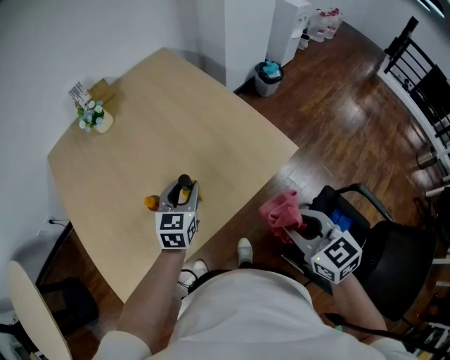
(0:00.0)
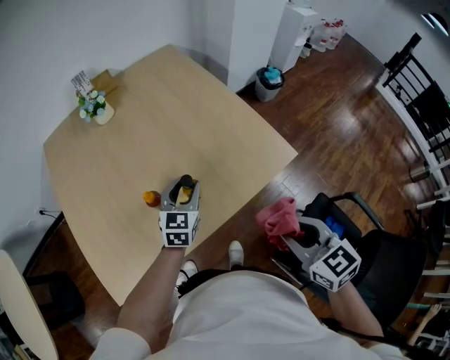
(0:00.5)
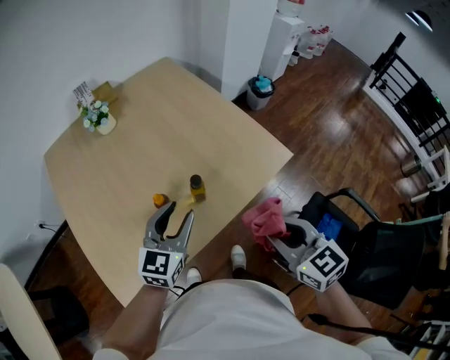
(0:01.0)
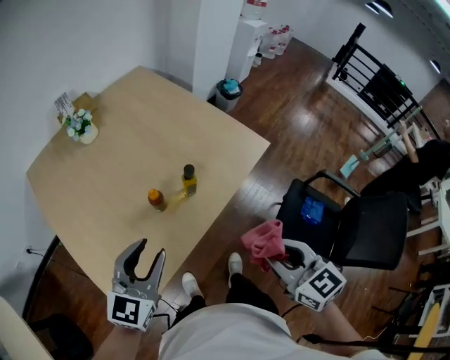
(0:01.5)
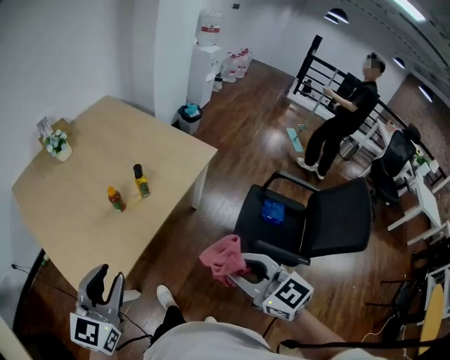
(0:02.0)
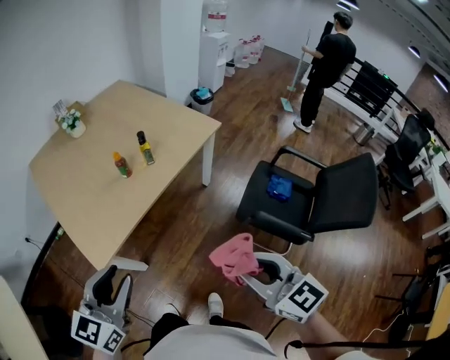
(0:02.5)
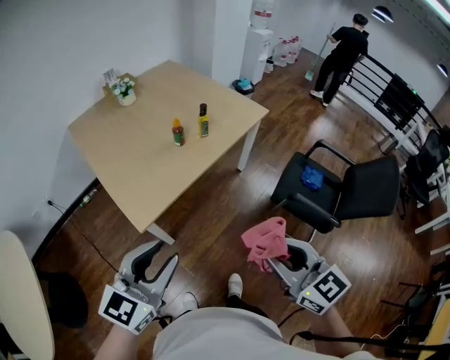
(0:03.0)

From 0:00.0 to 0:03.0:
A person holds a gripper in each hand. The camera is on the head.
From 0:00.0 to 0:01.5: The right gripper heads to the left and backward, covering roughly 20 cm; the left gripper travels backward, to the left and upward by about 30 cm, and changes its angle by approximately 20 degrees.
From 0:01.5 to 0:03.0: The two grippers go roughly 40 cm backward.

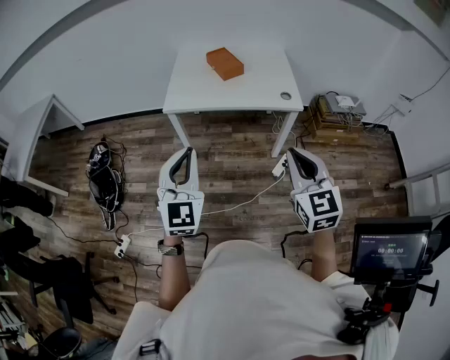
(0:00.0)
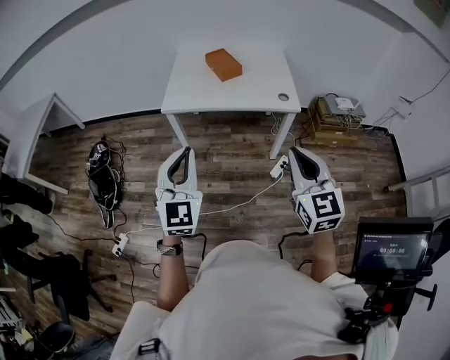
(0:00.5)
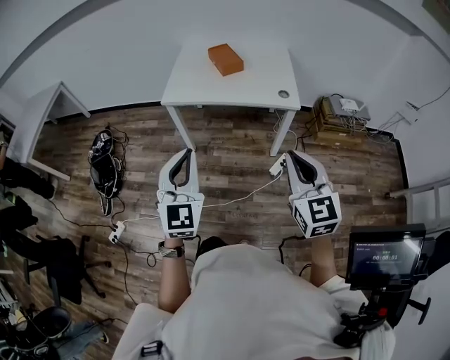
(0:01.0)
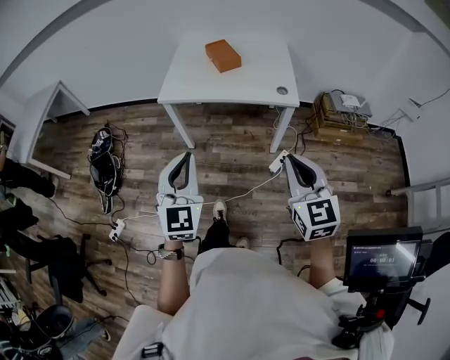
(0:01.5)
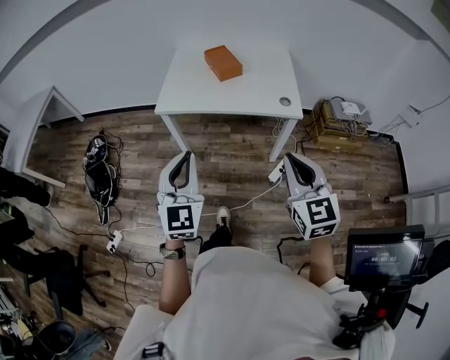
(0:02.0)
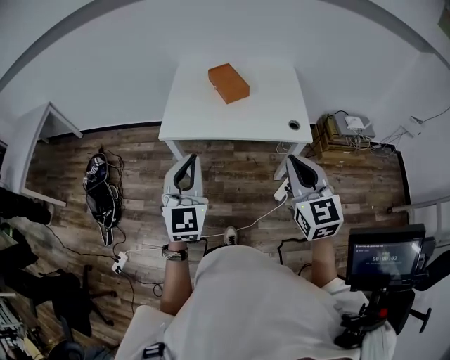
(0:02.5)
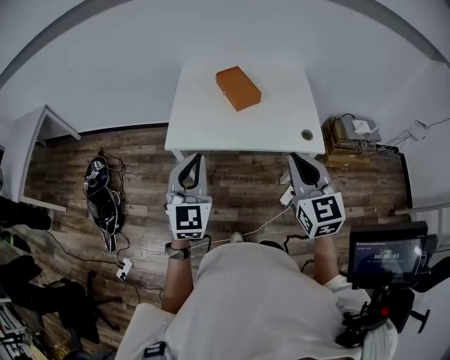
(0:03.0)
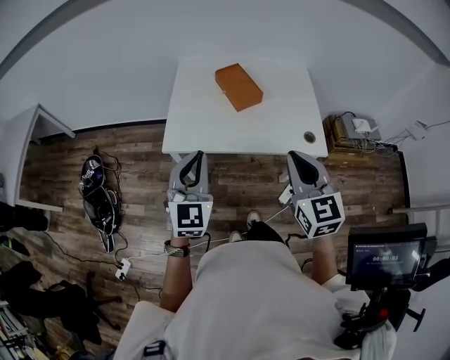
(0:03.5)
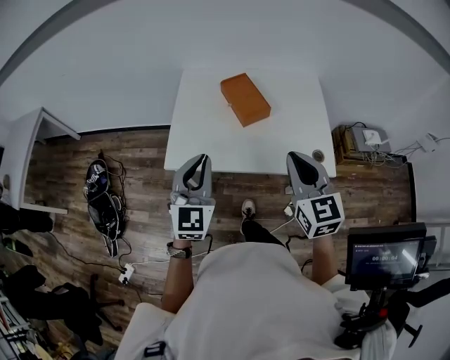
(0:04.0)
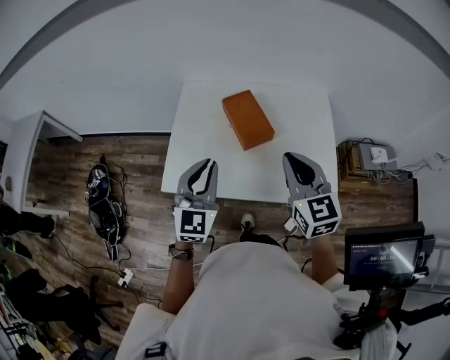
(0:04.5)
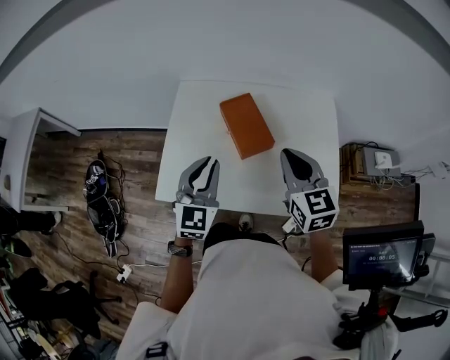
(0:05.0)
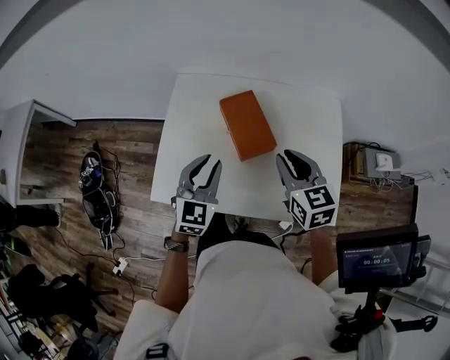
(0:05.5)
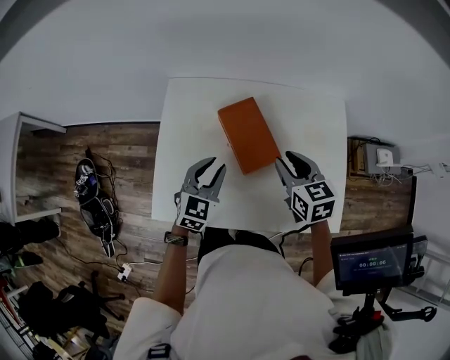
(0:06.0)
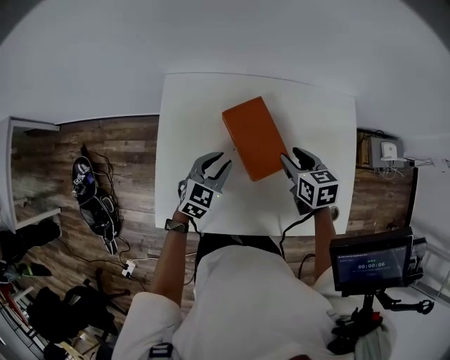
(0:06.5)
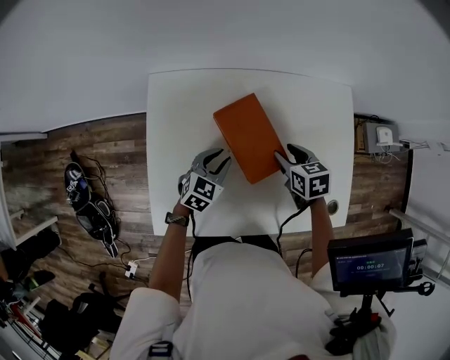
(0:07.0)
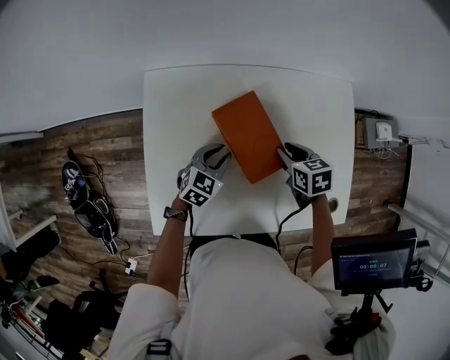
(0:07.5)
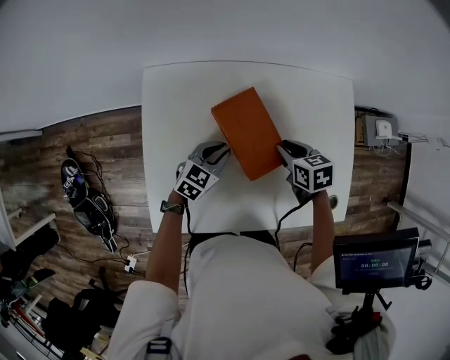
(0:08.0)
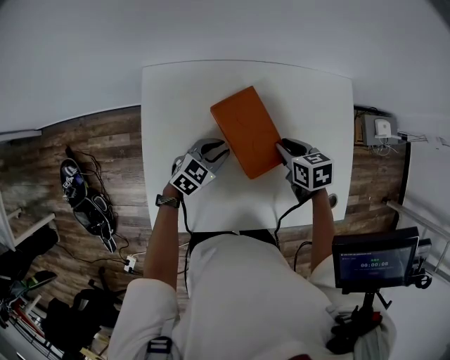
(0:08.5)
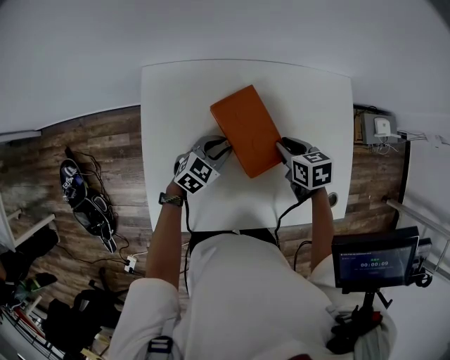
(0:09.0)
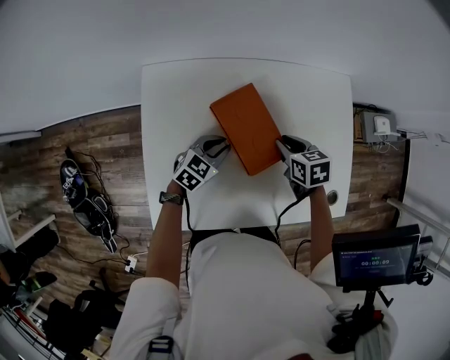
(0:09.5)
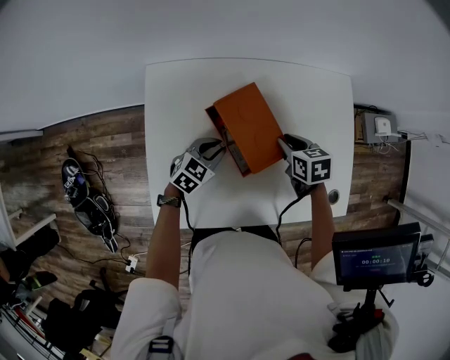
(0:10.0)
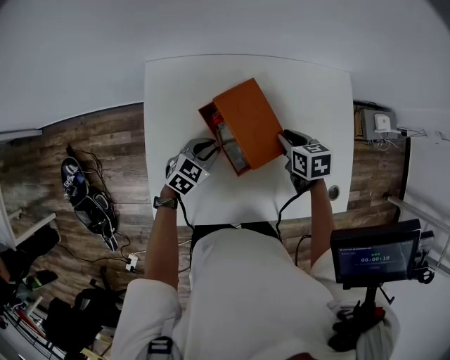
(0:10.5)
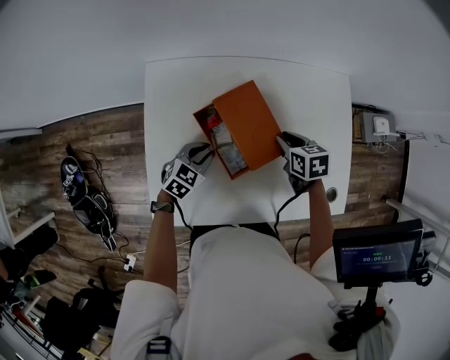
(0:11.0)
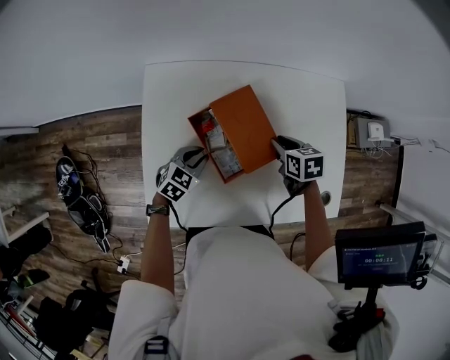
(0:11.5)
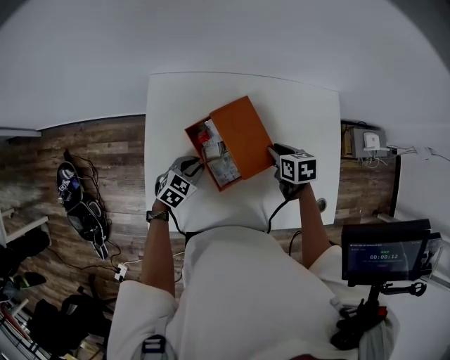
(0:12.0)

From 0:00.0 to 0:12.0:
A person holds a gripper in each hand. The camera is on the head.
From 0:00.0 to 0:02.0: The two grippers go roughly 5 cm to the right.
From 0:02.0 to 0:04.0: The two grippers go roughly 40 cm forward.
From 0:04.0 to 0:06.0: Both grippers travel together forward and downward, some 35 cm. The left gripper swivels roughly 30 degrees, and opens up, while the right gripper rotates about 30 degrees, and opens.
From 0:06.0 to 0:08.0: The right gripper shifts roughly 15 cm downward, and changes its angle by about 20 degrees, while the left gripper goes approximately 15 cm downward and forward, and rotates approximately 30 degrees.
From 0:08.0 to 0:10.0: The grippers make only small movements.
From 0:10.0 to 0:12.0: The left gripper shifts roughly 5 cm to the left.

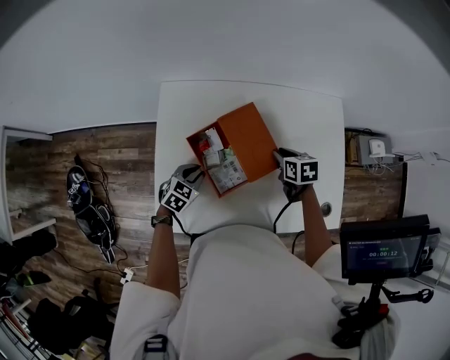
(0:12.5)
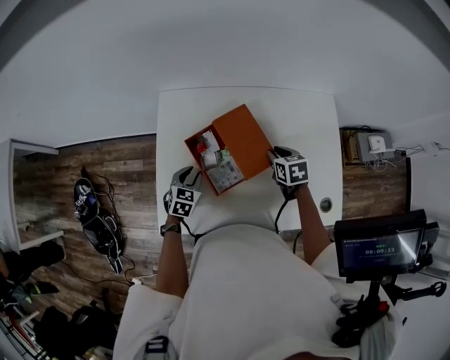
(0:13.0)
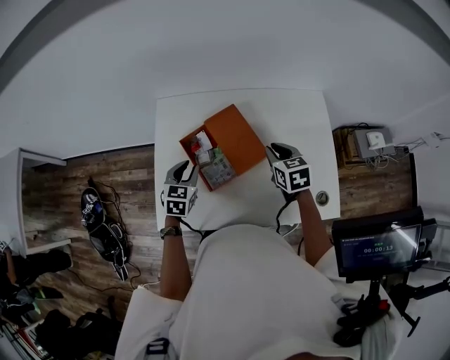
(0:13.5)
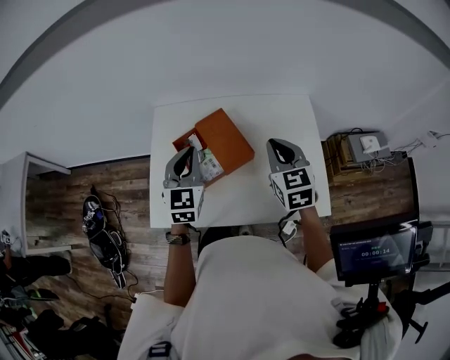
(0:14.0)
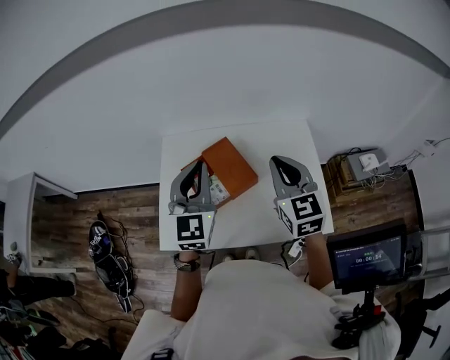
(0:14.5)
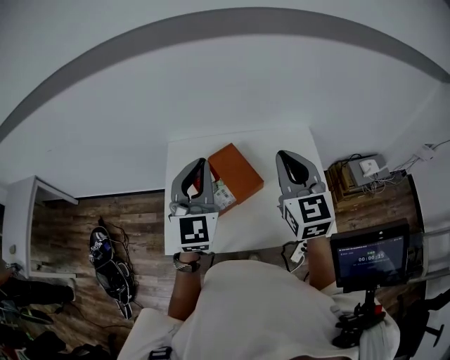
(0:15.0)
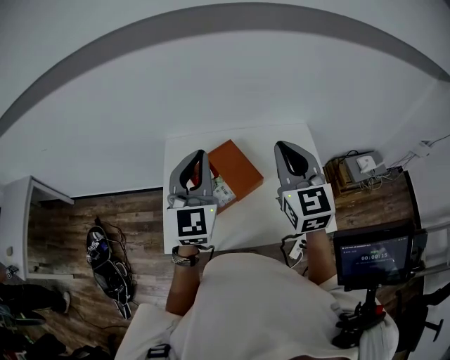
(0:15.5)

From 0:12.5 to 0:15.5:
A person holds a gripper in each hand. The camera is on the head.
From 0:12.5 to 0:14.0: Both grippers move upward, roughly 25 cm. The left gripper tips its fingers upward by some 30 degrees, while the right gripper points its fingers roughly 30 degrees further upward, and closes its fingers.
From 0:14.0 to 0:15.5: Both grippers travel together upward, about 15 cm.

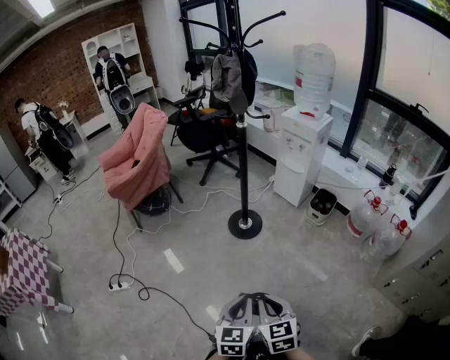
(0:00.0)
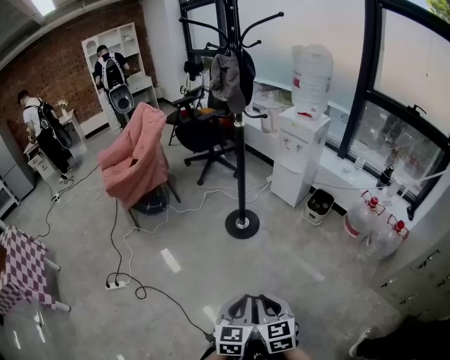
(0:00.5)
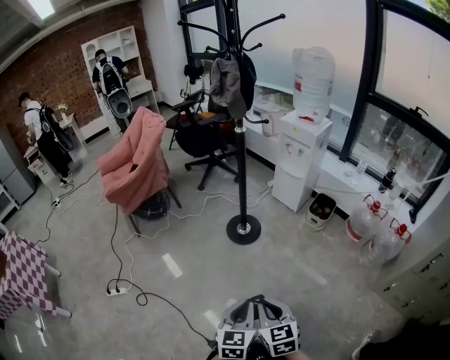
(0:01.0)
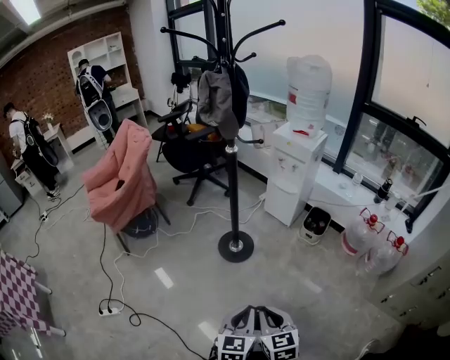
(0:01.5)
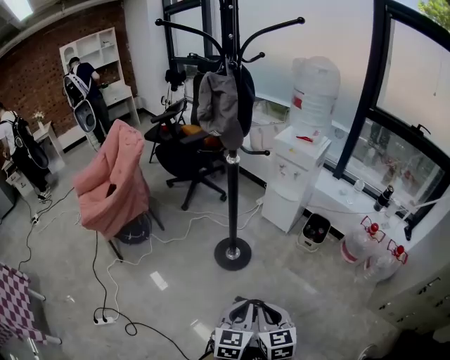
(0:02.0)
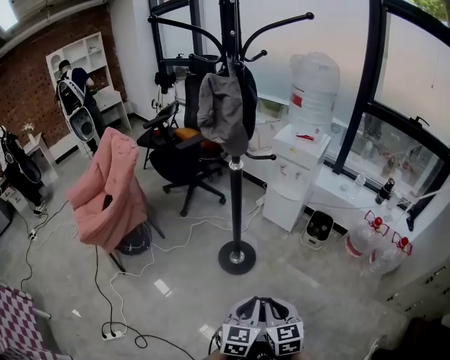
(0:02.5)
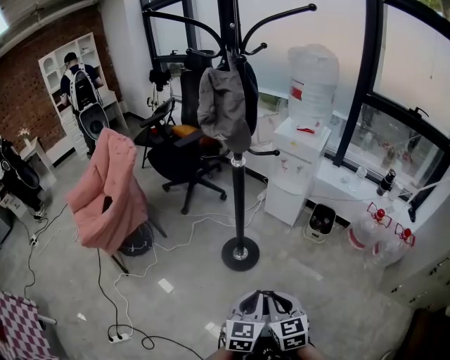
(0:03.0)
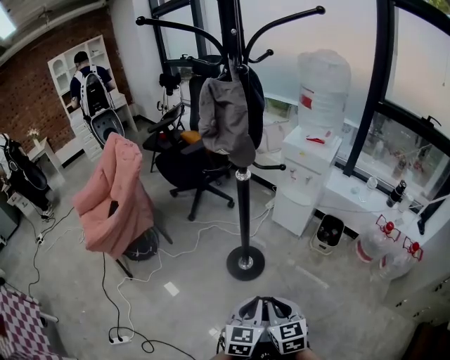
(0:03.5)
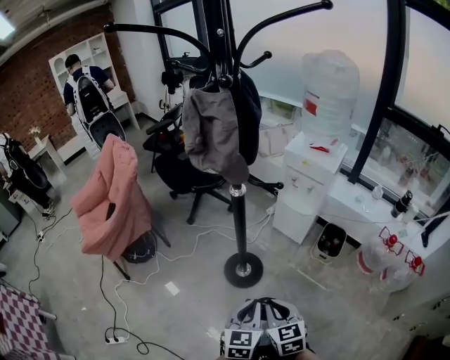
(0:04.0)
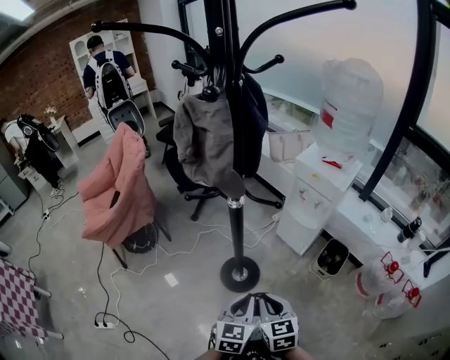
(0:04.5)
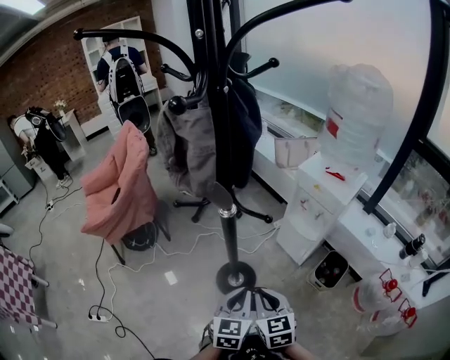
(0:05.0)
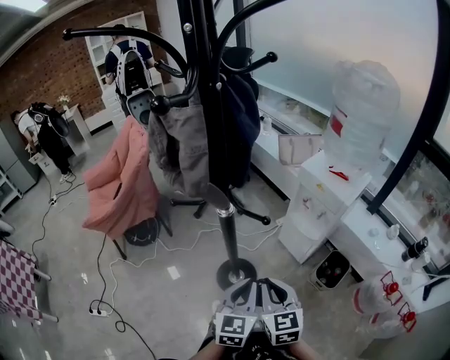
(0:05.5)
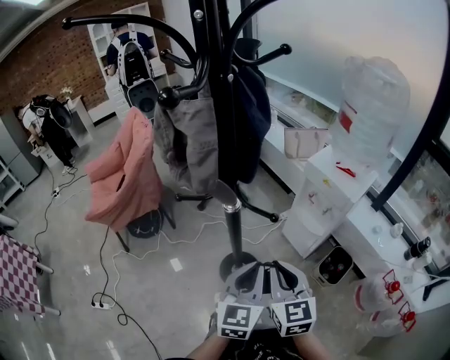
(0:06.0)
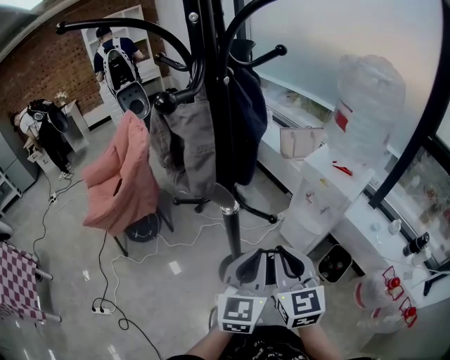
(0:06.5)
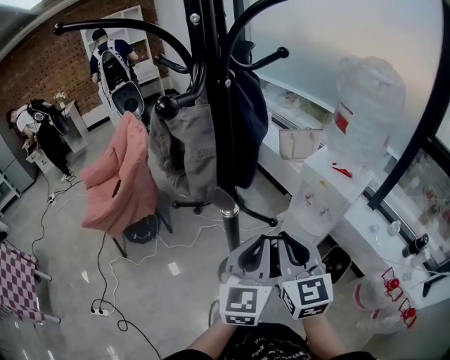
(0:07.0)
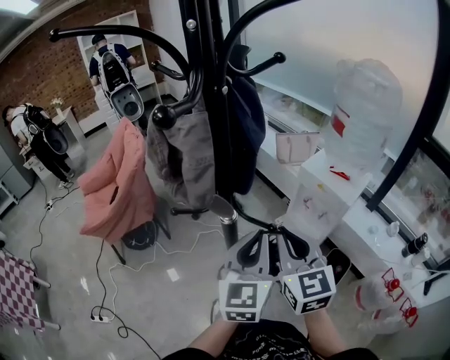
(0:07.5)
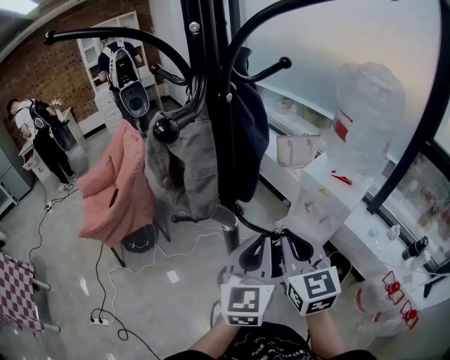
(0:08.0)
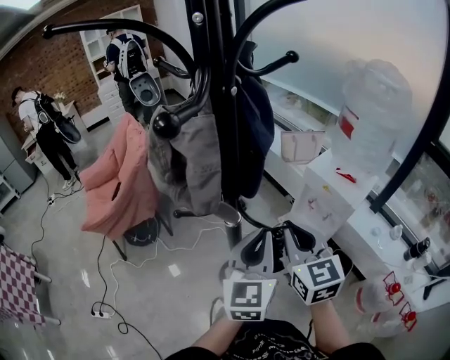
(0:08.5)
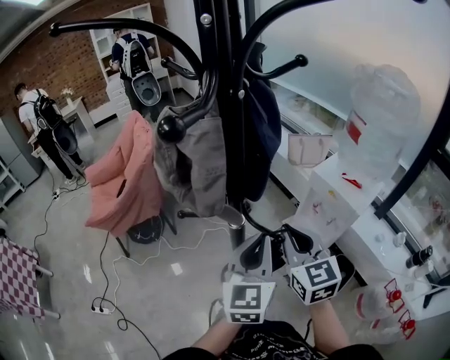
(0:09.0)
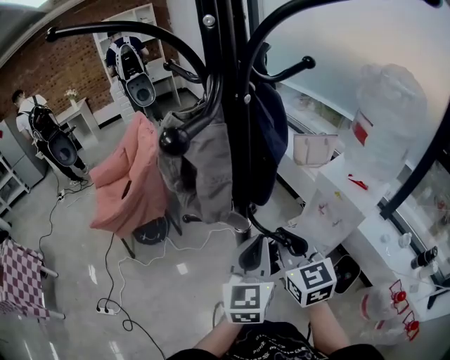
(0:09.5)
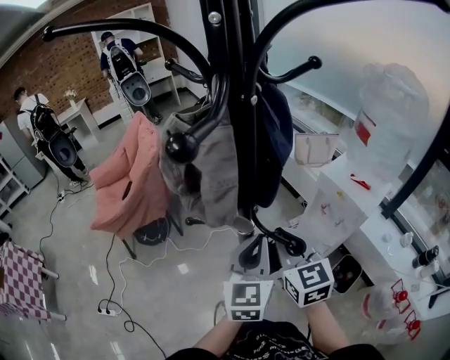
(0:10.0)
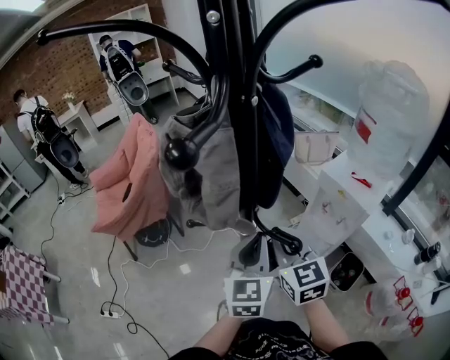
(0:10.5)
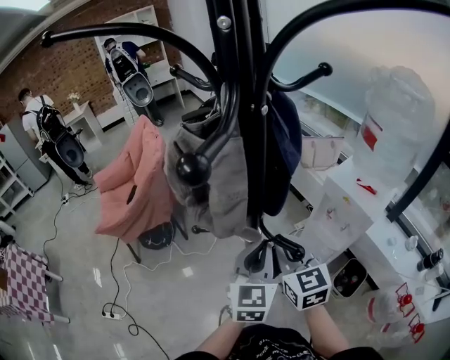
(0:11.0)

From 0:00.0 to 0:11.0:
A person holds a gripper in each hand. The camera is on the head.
From 0:00.0 to 0:02.0: Both grippers move forward, some 20 cm.
From 0:02.0 to 0:03.5: The two grippers go about 10 cm forward.
From 0:03.5 to 0:05.5: The grippers both shift forward and to the right by approximately 25 cm.
From 0:05.5 to 0:07.5: Both grippers move upward and forward, roughly 20 cm.
From 0:07.5 to 0:09.0: The grippers move only a little.
From 0:09.0 to 0:11.0: The left gripper moves about 5 cm. Meanwhile the right gripper goes about 5 cm to the left.
